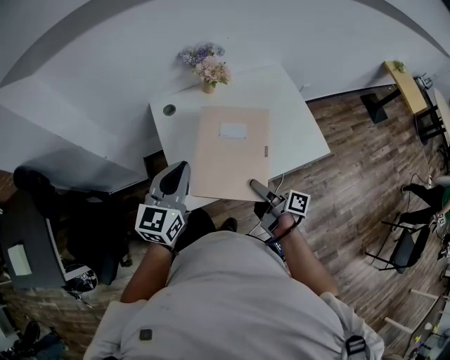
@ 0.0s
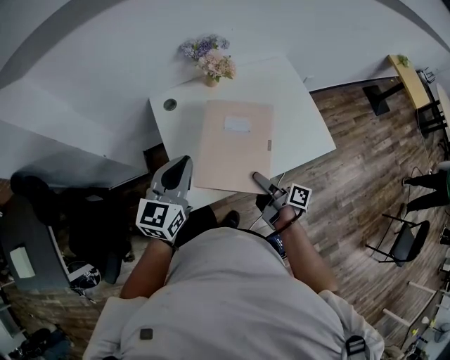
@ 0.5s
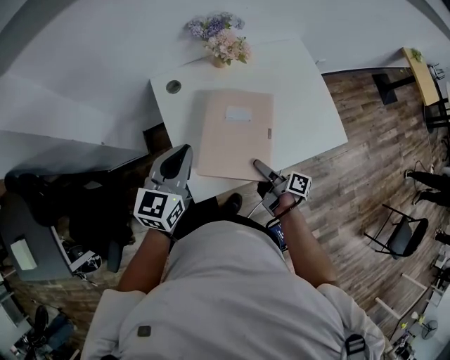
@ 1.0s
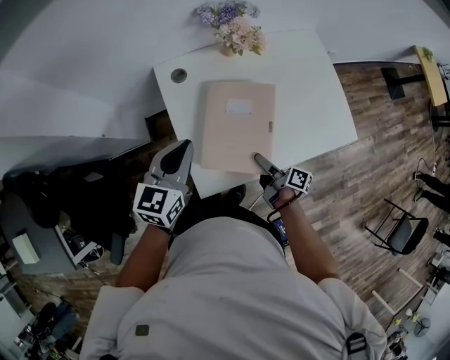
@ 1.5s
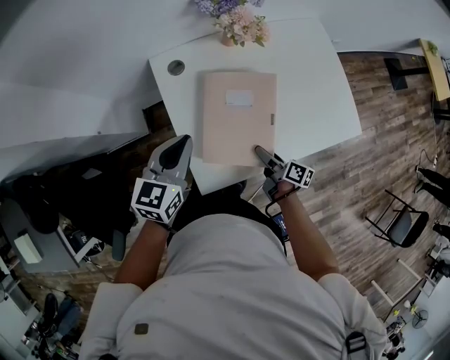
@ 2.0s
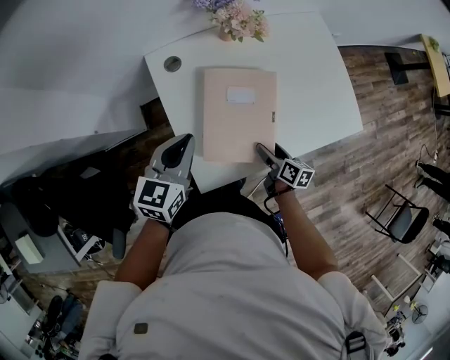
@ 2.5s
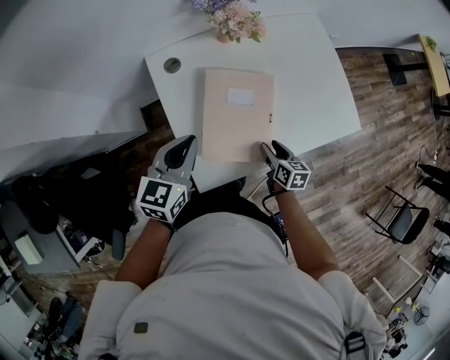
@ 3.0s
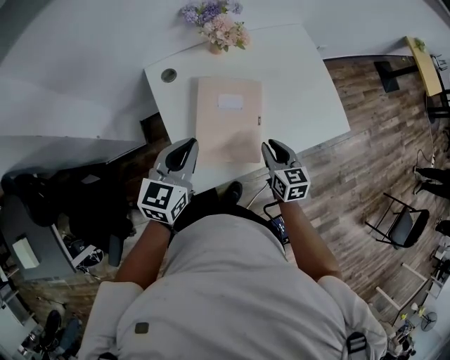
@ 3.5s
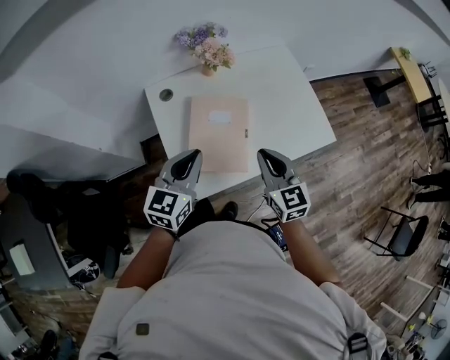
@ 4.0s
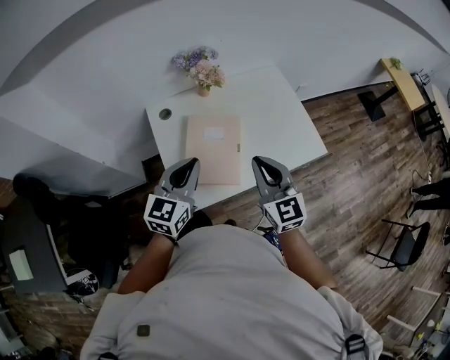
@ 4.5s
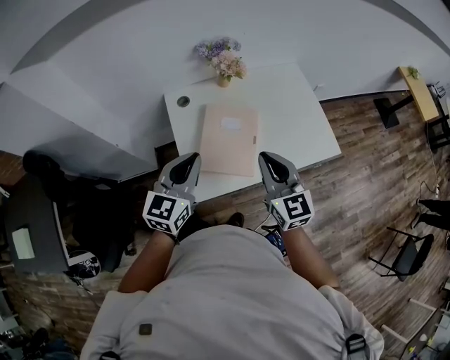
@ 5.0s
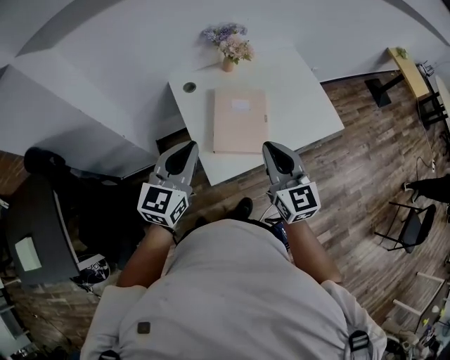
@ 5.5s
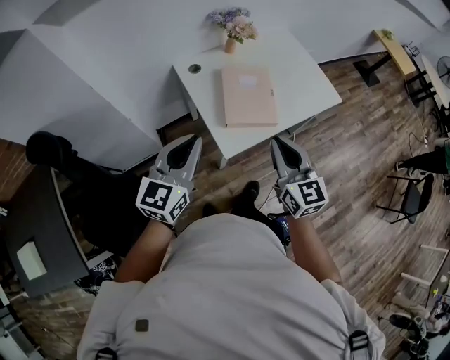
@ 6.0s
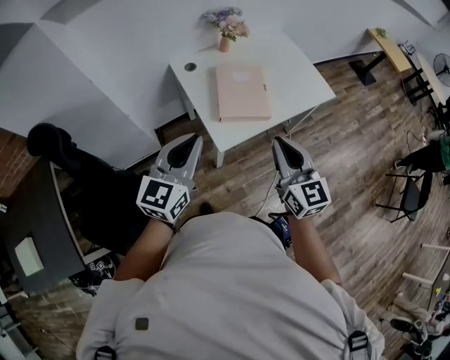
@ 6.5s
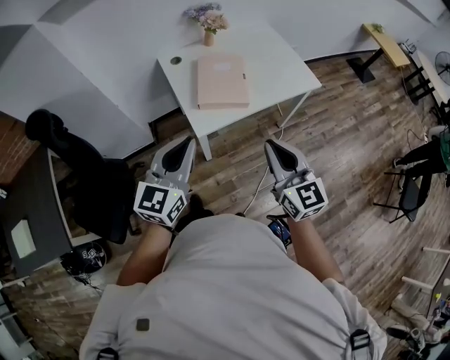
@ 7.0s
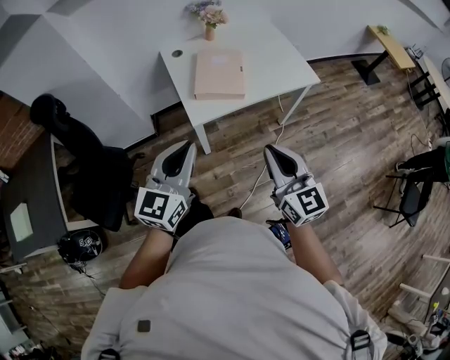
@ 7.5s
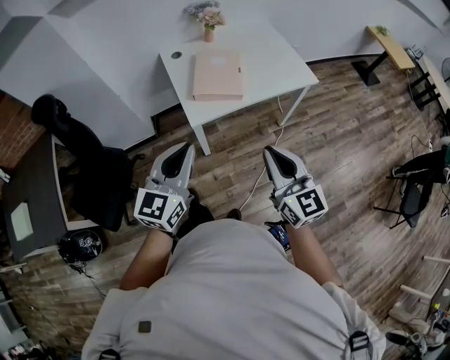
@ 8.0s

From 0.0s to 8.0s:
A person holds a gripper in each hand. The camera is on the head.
From 0.0s to 2.0s: The left gripper shifts some 20 cm downward, forward and to the left. The right gripper goes roughly 20 cm downward and forward, and changes its angle by approximately 20 degrees.
From 2.0s to 4.0s: The right gripper goes approximately 25 cm upward, rotates around the line of its fingers by approximately 70 degrees, counterclockwise from behind, and closes up; the left gripper moves to the right, backward and upward, some 15 cm.
From 4.0s to 6.0s: The two grippers go roughly 30 cm backward, to the left and upward.
From 6.0s to 8.0s: The grippers both shift backward and to the right by some 30 cm.

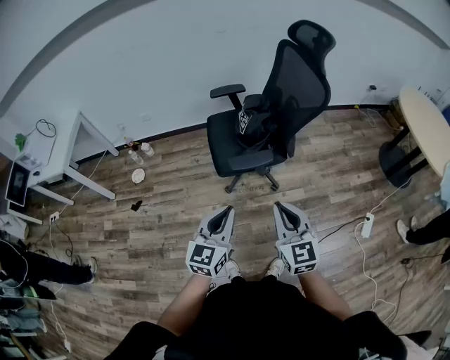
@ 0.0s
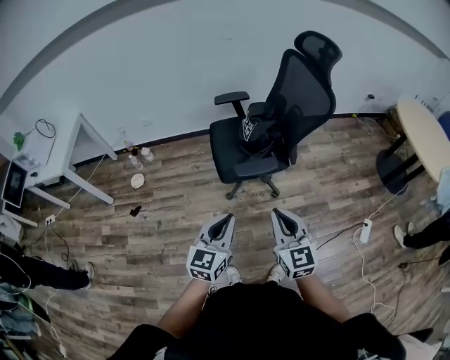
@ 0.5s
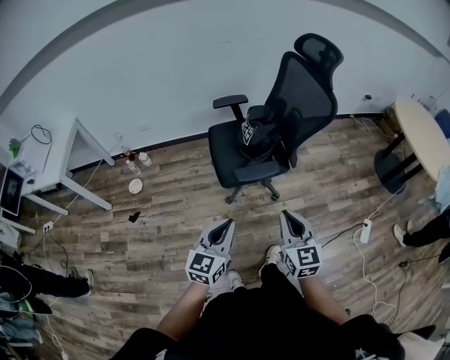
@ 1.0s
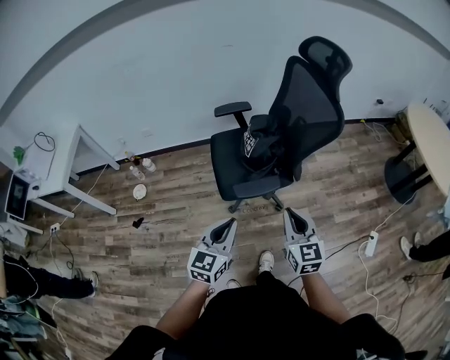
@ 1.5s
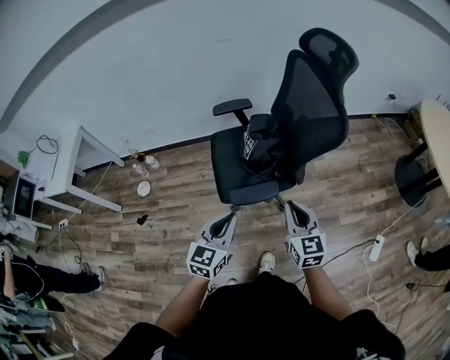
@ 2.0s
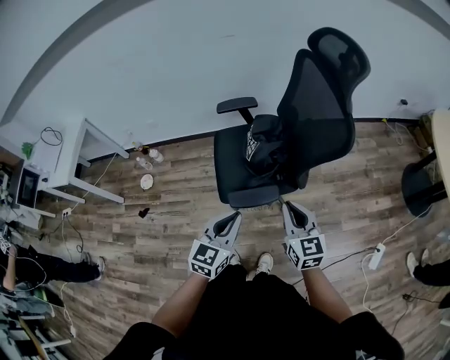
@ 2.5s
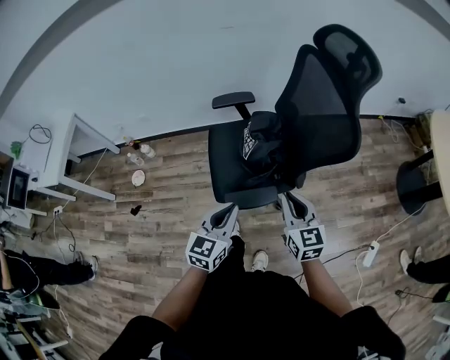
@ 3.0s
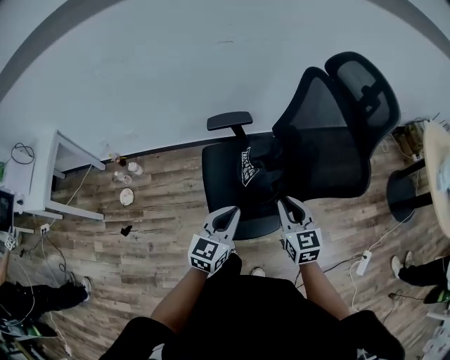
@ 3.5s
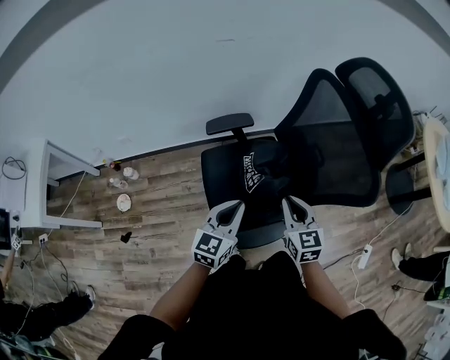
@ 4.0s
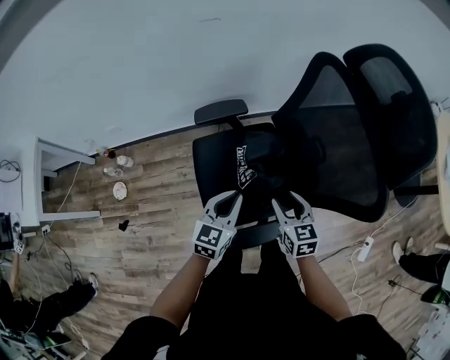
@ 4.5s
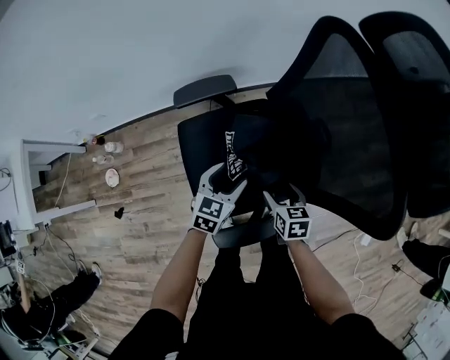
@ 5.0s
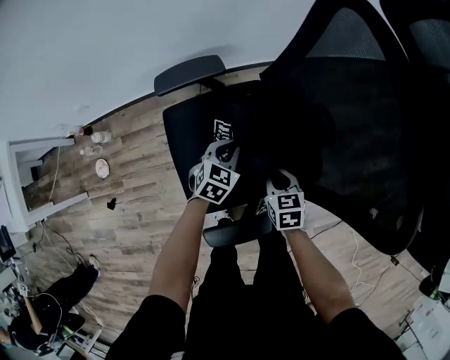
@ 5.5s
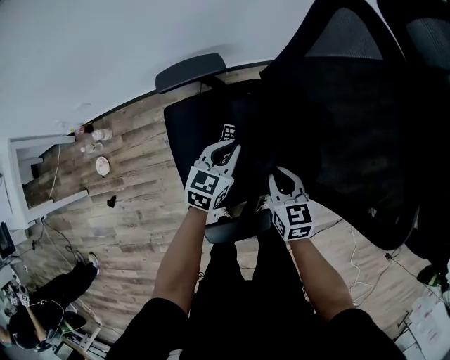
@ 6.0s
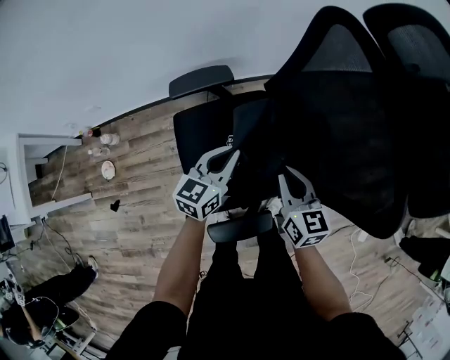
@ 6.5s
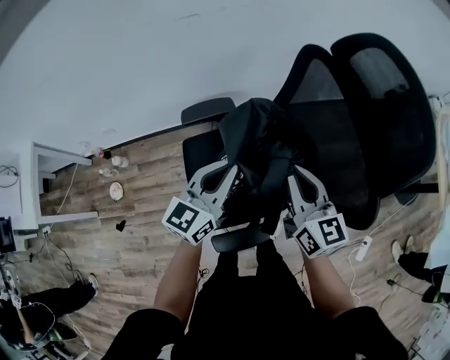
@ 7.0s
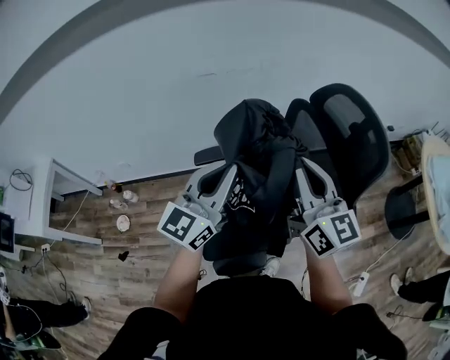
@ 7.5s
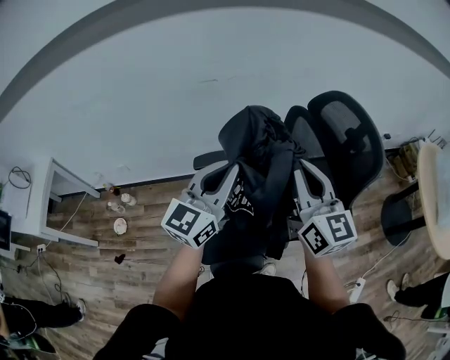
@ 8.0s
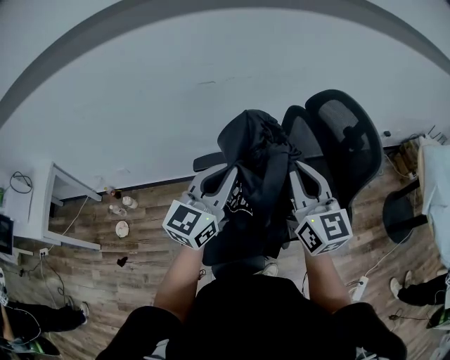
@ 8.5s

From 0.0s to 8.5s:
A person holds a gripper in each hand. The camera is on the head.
From 0.0s to 2.0s: Both grippers move forward, approximately 20 cm.
From 2.0s to 4.0s: Both grippers travel together forward, some 25 cm.
From 4.0s to 6.5s: The grippers both shift forward and downward by roughly 20 cm. The right gripper opens and closes again. The left gripper opens and closes again.
From 6.5s to 8.5s: The two grippers go approximately 35 cm upward. The left gripper turns by some 30 degrees. The right gripper changes its angle by approximately 30 degrees.

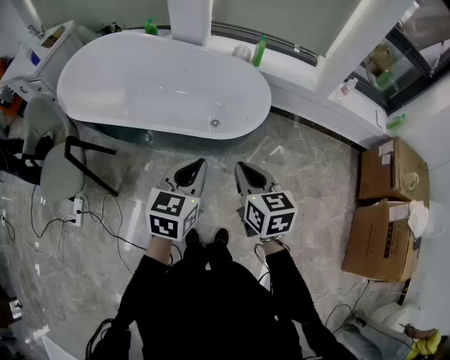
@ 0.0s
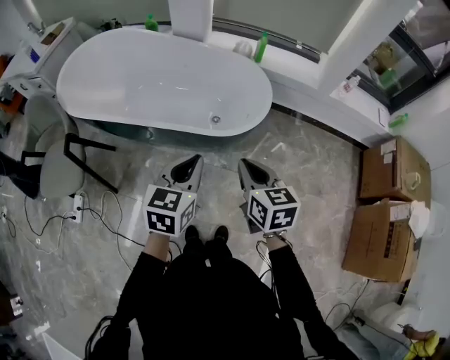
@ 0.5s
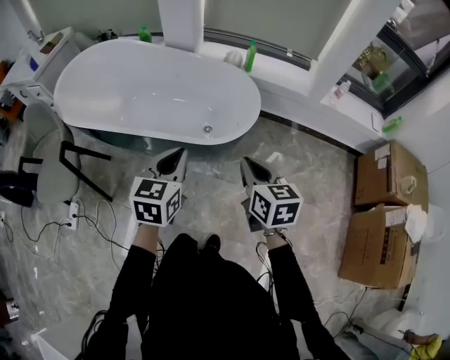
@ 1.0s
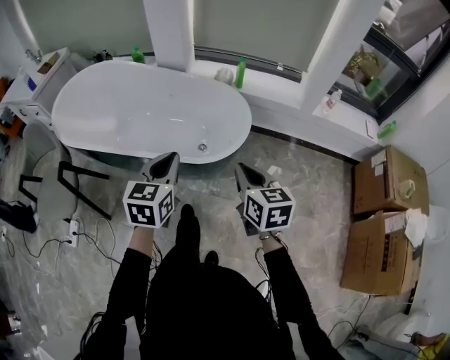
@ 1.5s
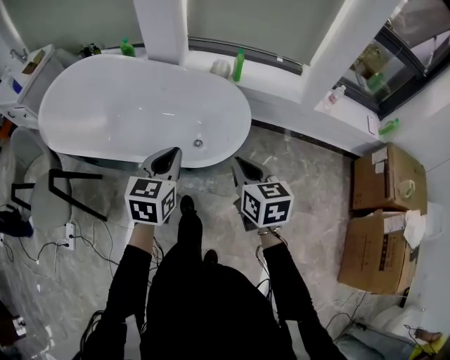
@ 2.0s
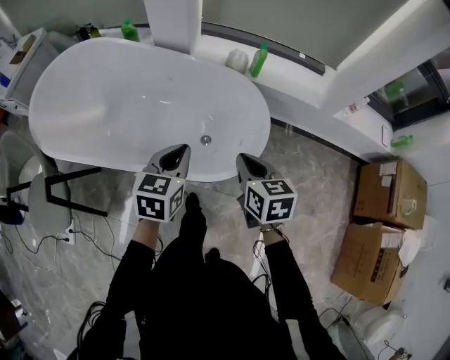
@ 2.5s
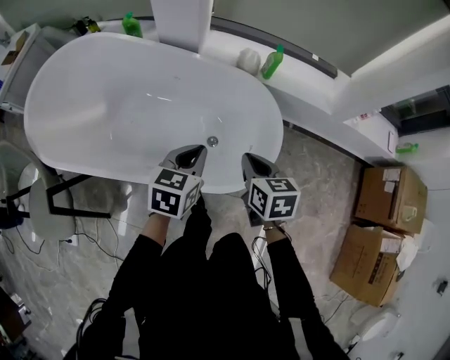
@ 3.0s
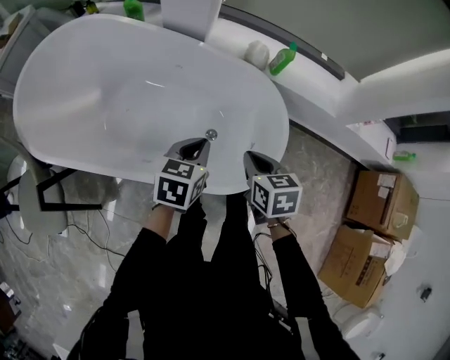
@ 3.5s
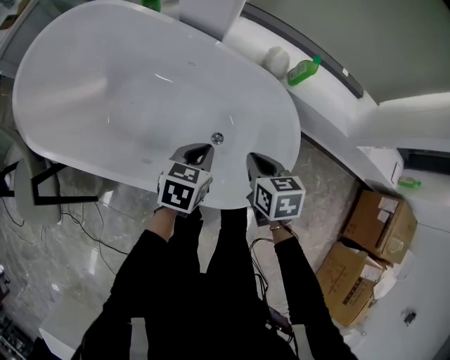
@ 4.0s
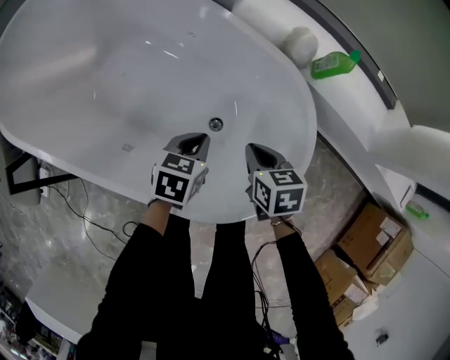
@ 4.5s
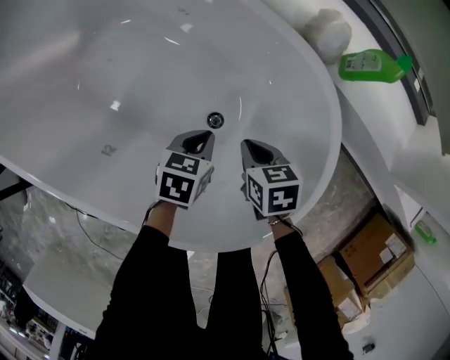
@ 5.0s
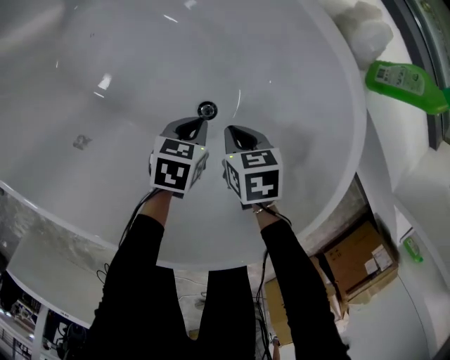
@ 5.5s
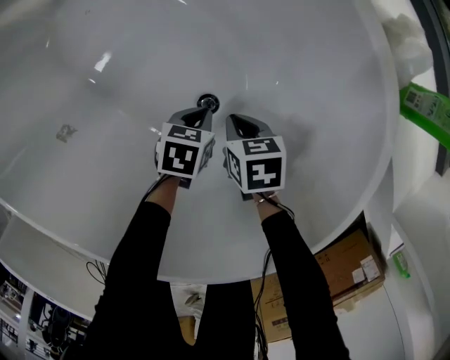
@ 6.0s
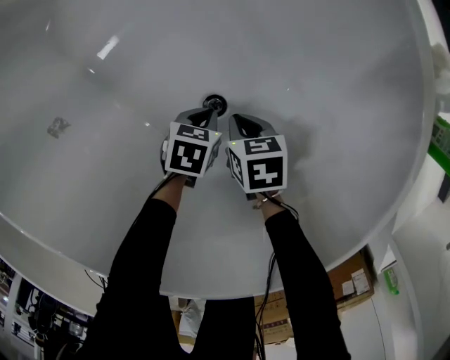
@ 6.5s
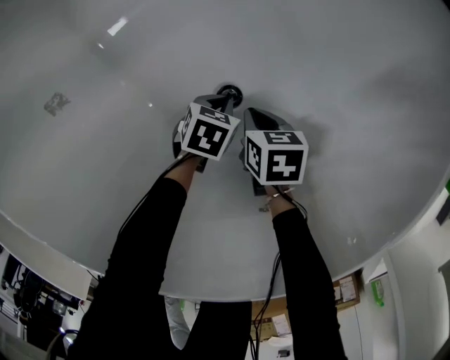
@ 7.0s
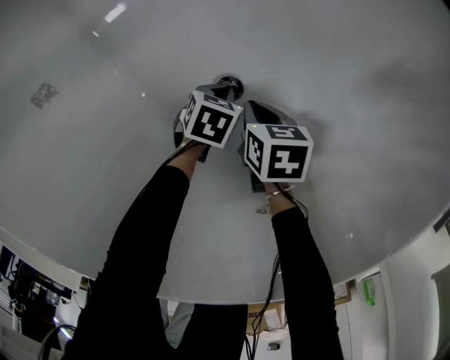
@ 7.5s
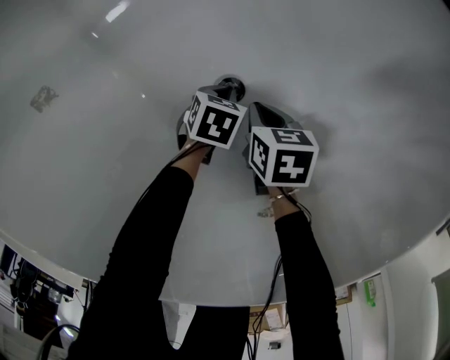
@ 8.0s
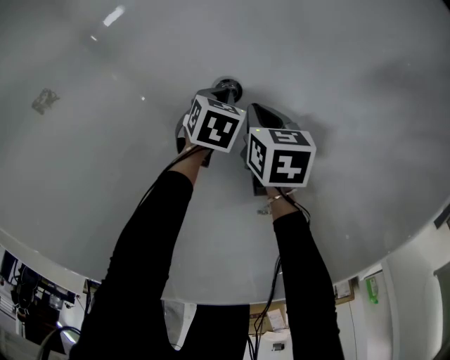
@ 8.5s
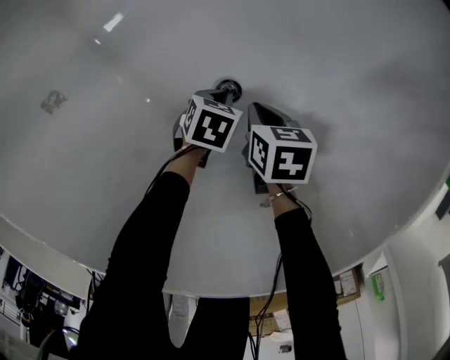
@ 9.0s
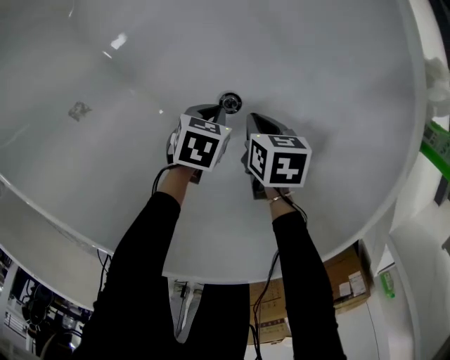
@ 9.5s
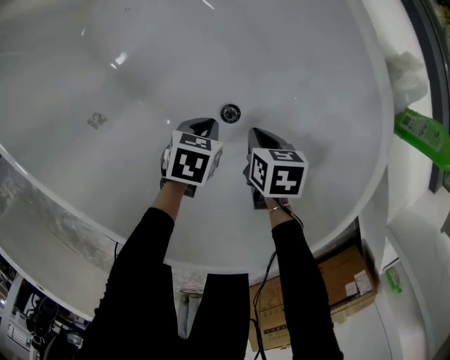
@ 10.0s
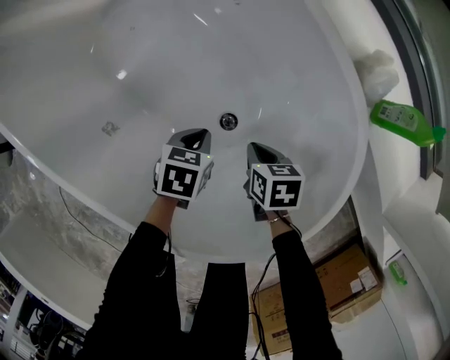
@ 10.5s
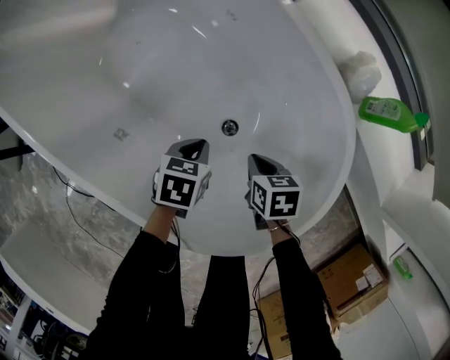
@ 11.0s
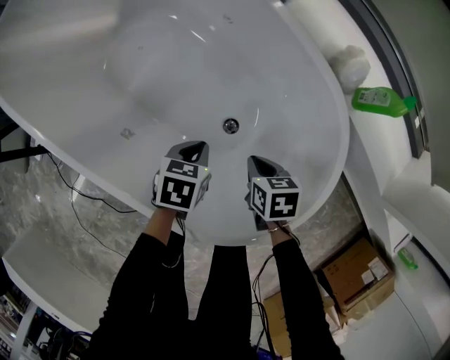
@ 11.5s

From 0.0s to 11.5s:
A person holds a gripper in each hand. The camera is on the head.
From 0.0s to 2.0s: The left gripper shifts approximately 15 cm forward, while the right gripper moves forward and to the right, roughly 15 cm.
From 2.0s to 4.0s: The right gripper is displaced forward, downward and to the left by roughly 35 cm, and rotates approximately 30 degrees, while the left gripper shifts some 30 cm forward and downward, and rotates about 20 degrees.
From 4.0s to 6.0s: Both grippers travel together downward, about 40 cm. The right gripper changes its angle by about 30 degrees, while the left gripper swivels about 40 degrees.
From 6.0s to 7.5s: Both grippers move downward, roughly 10 cm.
From 7.5s to 9.5s: Both grippers move upward, about 10 cm.
From 9.5s to 11.5s: The grippers both shift upward by roughly 20 cm.
